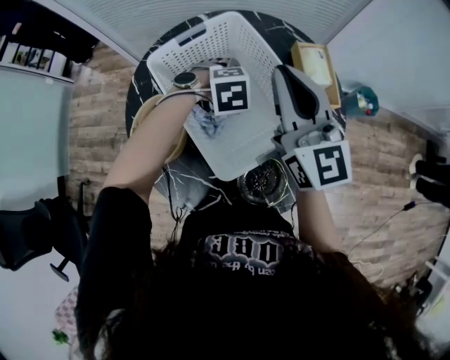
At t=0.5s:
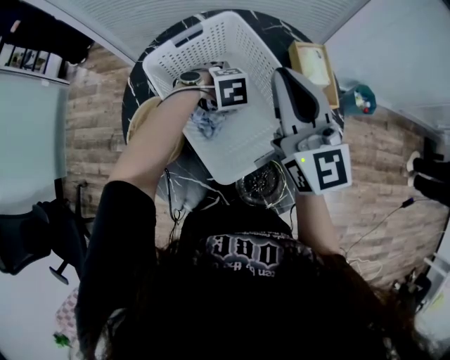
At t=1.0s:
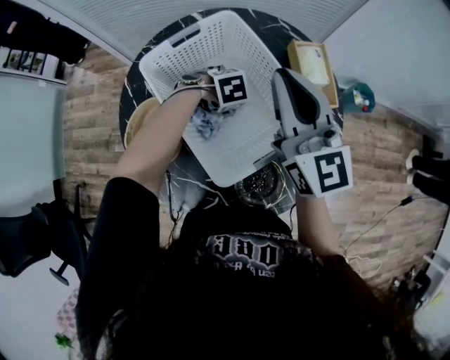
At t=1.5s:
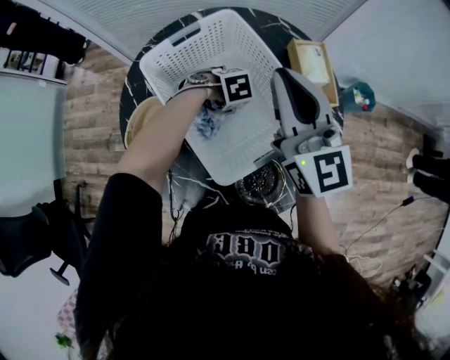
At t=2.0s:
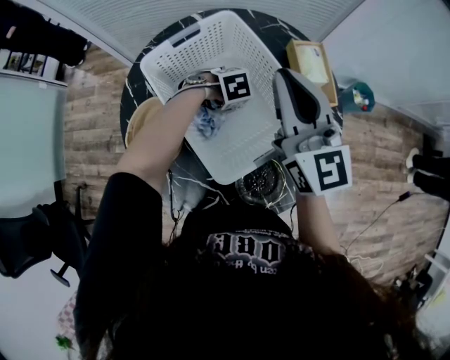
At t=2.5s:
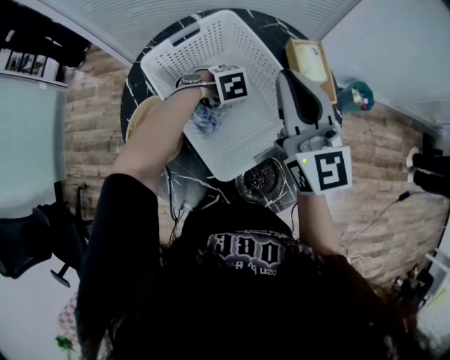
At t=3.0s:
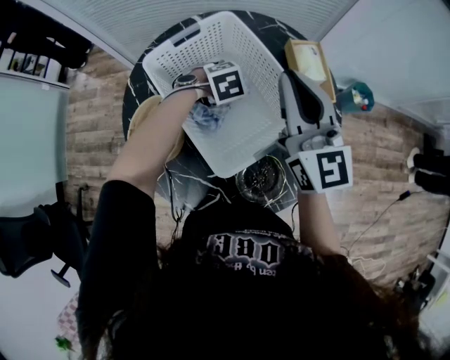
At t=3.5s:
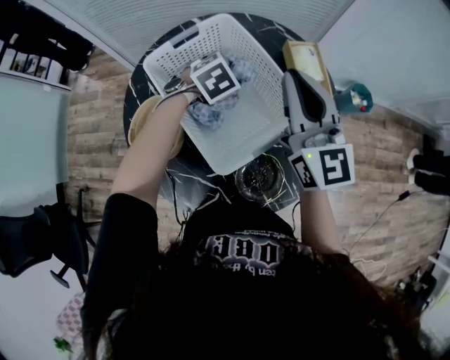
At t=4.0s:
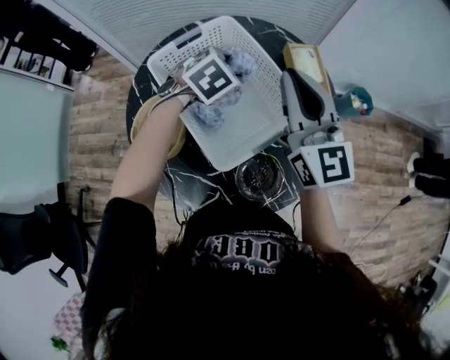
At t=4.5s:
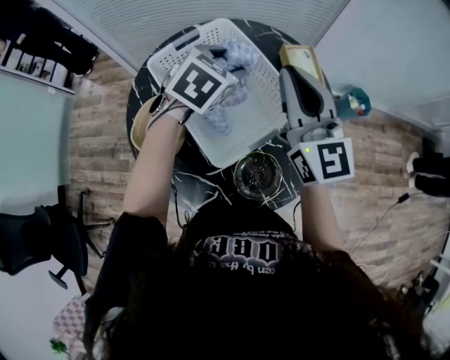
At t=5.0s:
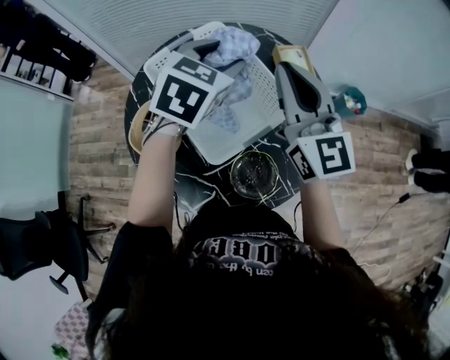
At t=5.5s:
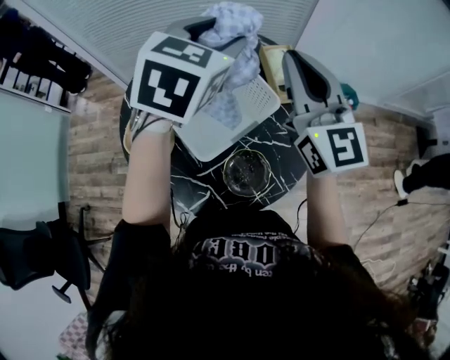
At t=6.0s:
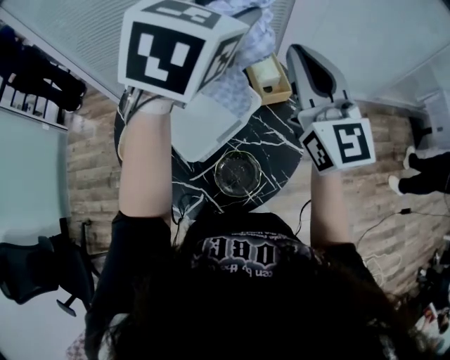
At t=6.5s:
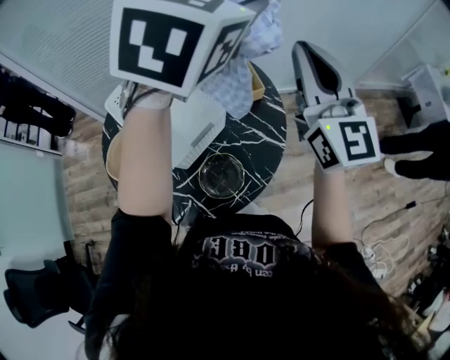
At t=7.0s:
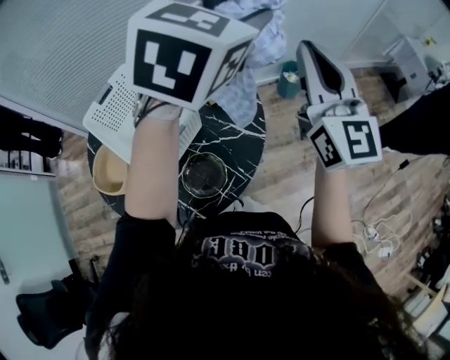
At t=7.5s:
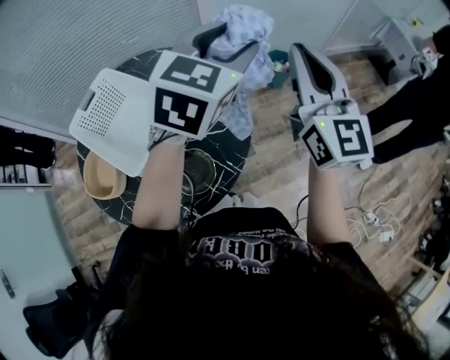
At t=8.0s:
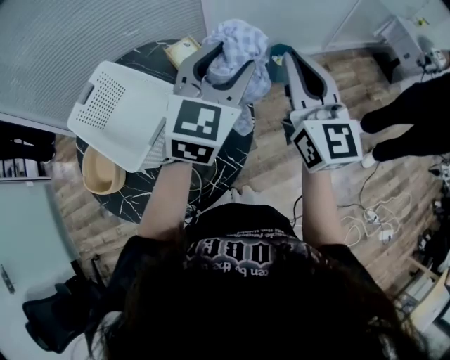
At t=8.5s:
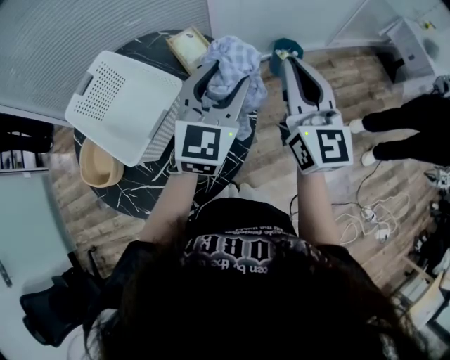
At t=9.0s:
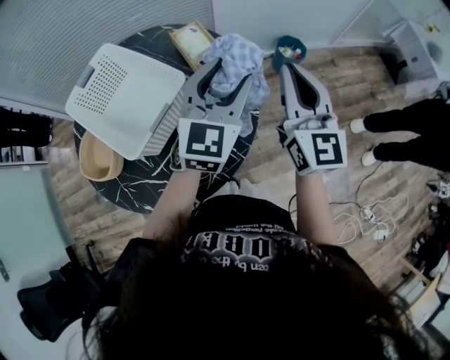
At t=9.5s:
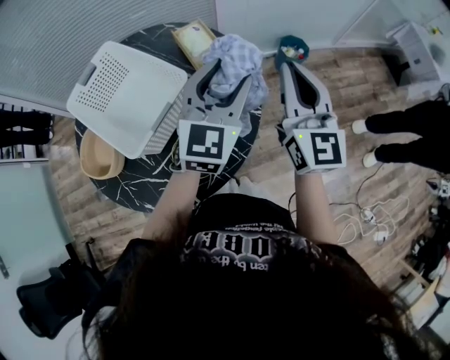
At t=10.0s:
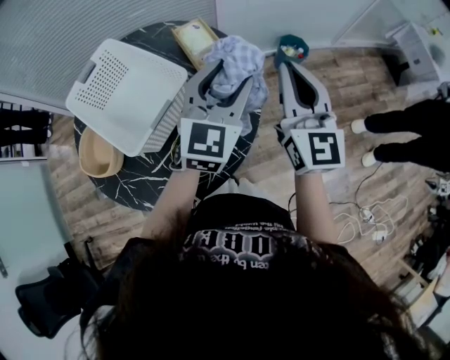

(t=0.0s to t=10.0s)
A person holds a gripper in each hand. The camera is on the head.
t=0.0s - t=2.0s: The left gripper is displaced downward by about 10 cm.
t=2.0s - t=4.0s: The left gripper travels upward by about 15 cm, and changes its angle by approximately 30 degrees.
t=4.0s - t=6.0s: The left gripper heads upward, covering about 30 cm, and tips its fingers upward by about 40 degrees, while the right gripper is displaced upward and to the right by approximately 15 cm.
t=6.0s - t=8.0s: The right gripper goes approximately 20 cm to the right, and rotates approximately 20 degrees, while the left gripper moves to the right and downward, roughly 25 cm.
t=8.0s - t=10.0s: Both grippers move downward, about 5 cm.

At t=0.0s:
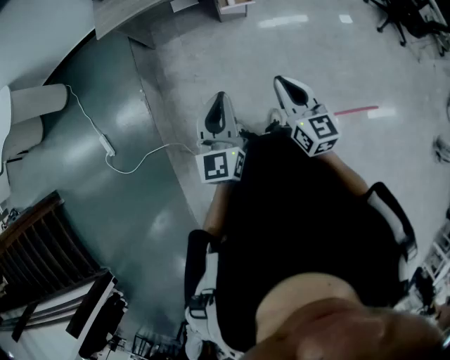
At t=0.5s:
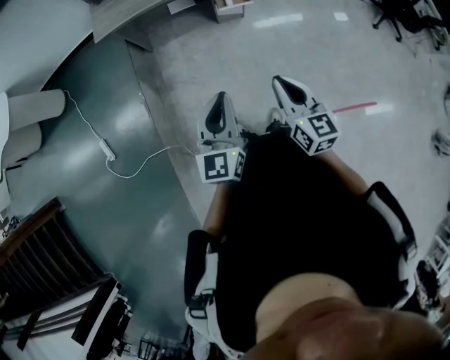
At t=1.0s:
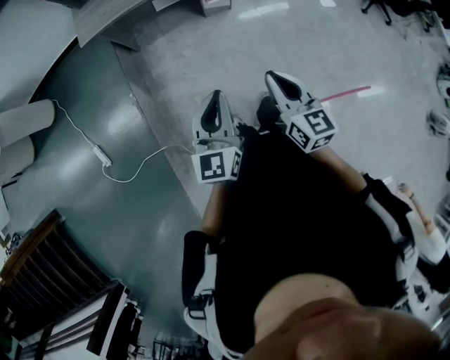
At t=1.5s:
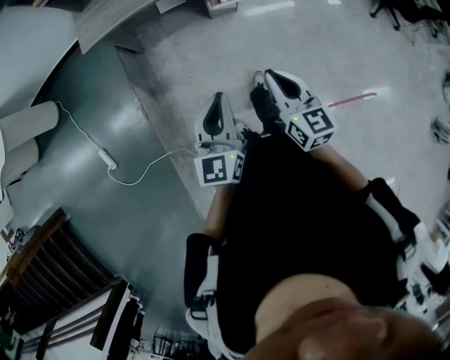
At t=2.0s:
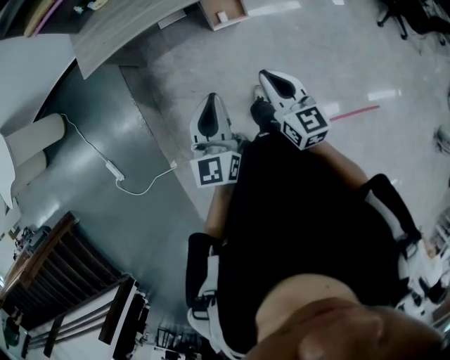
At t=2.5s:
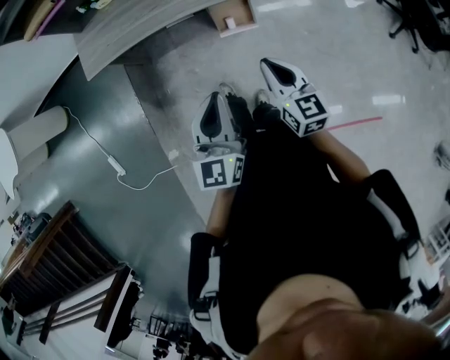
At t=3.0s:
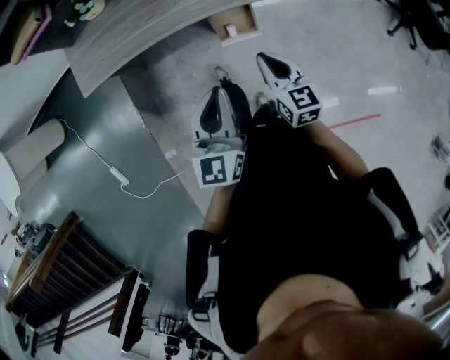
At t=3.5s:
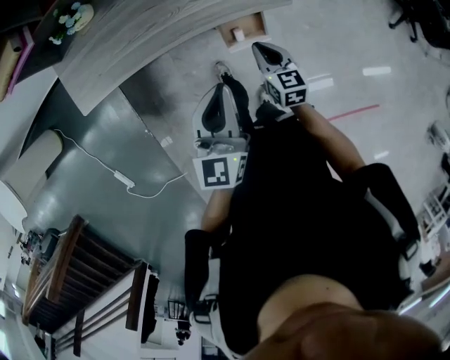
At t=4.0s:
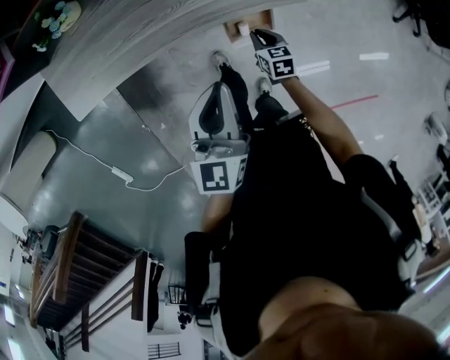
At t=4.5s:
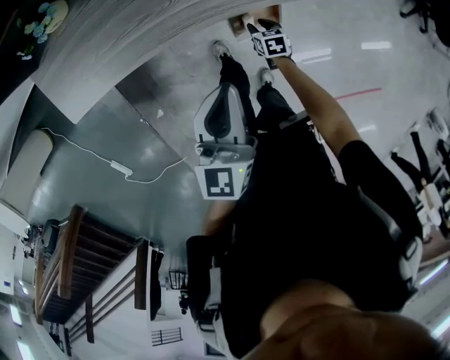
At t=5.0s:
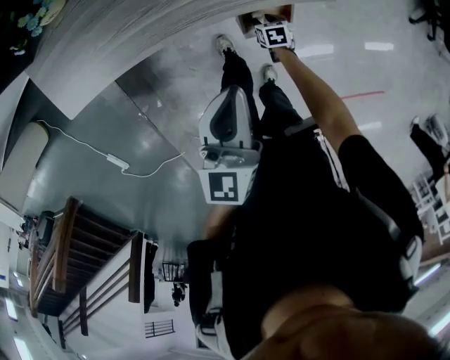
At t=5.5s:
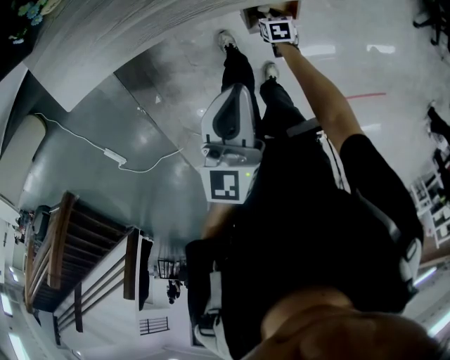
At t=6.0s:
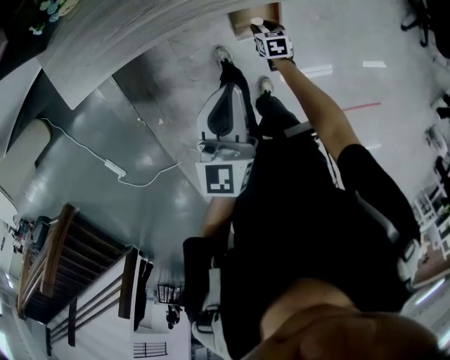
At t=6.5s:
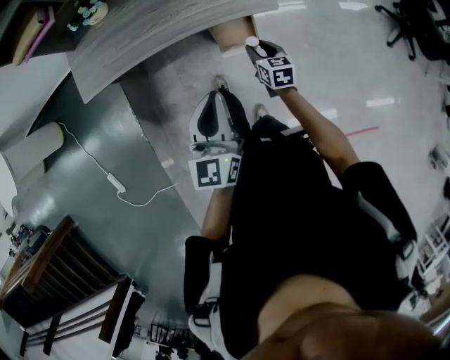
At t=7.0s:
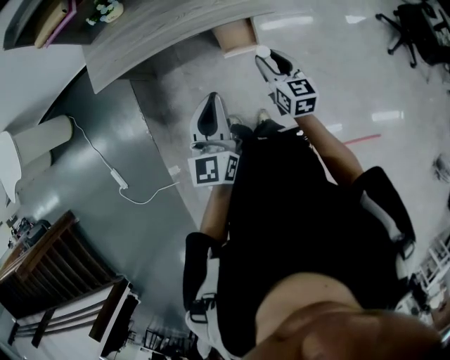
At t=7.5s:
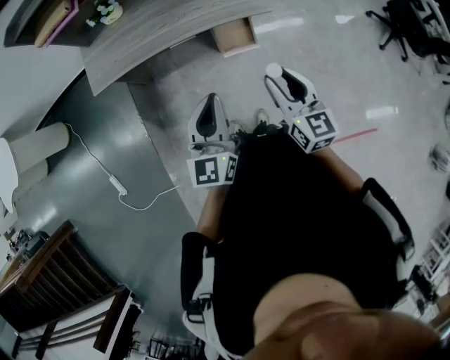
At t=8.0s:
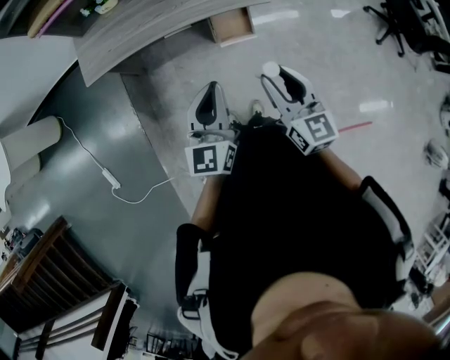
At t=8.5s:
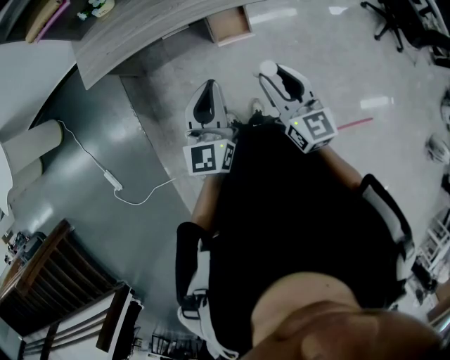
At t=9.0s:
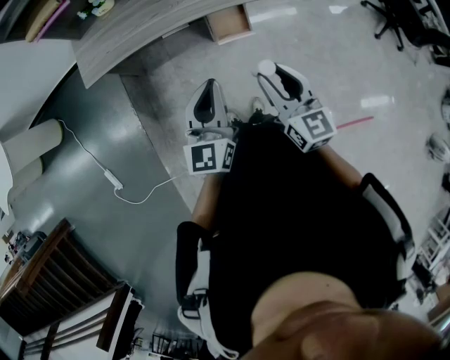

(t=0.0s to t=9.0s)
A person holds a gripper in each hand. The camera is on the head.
t=0.0s - t=2.0s: Both grippers travel together forward, about 25 cm.
t=2.0s - t=4.5s: The left gripper travels forward by about 40 cm, while the right gripper travels downward and forward by roughly 60 cm, tips its fingers downward by about 50 degrees, and opens.
t=4.5s - t=7.0s: The left gripper travels backward and upward by roughly 25 cm; the right gripper shifts roughly 40 cm upward and backward, and angles its fingers upward, by about 40 degrees.
t=7.0s - t=9.0s: The right gripper shifts roughly 20 cm backward, upward and to the left.

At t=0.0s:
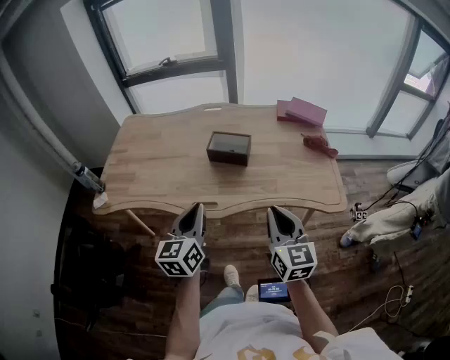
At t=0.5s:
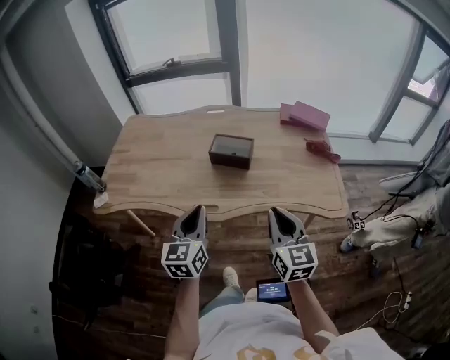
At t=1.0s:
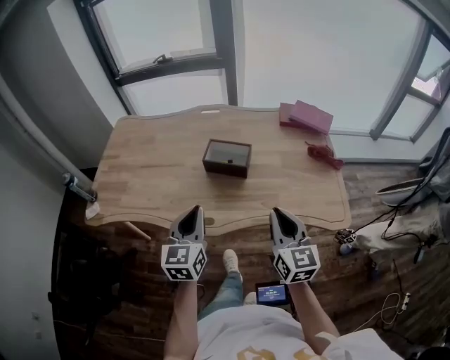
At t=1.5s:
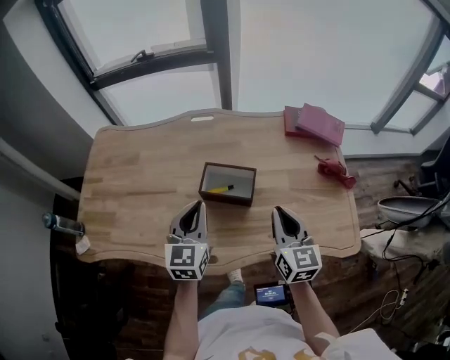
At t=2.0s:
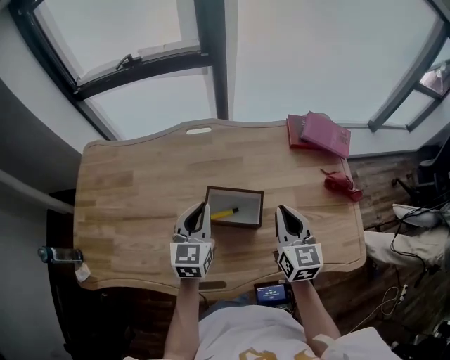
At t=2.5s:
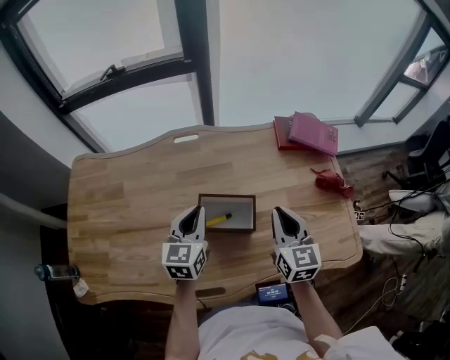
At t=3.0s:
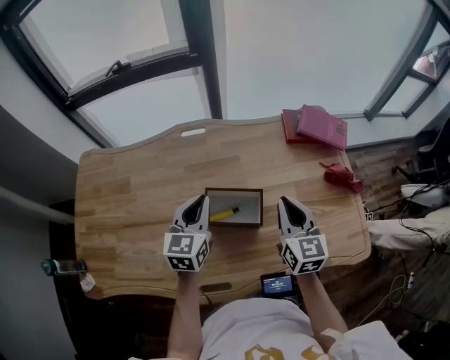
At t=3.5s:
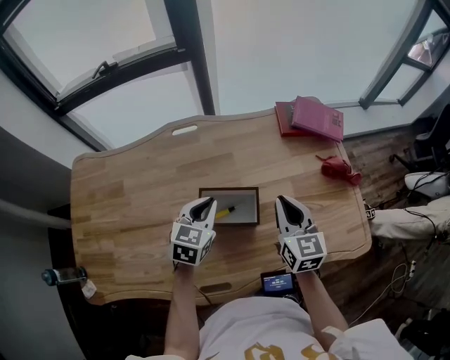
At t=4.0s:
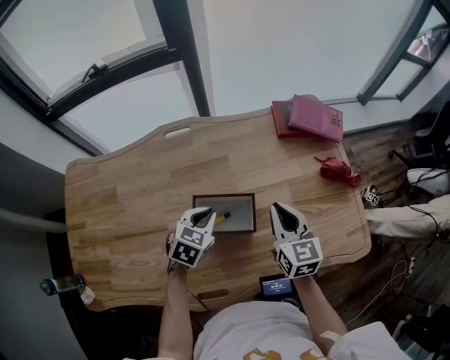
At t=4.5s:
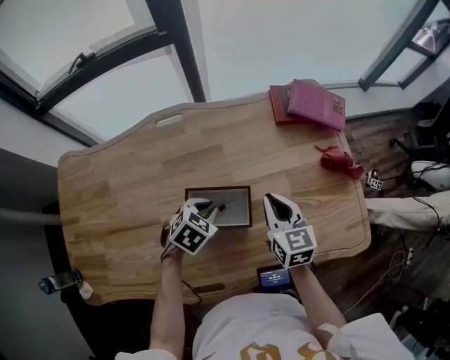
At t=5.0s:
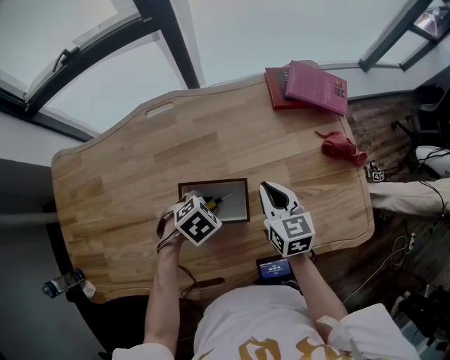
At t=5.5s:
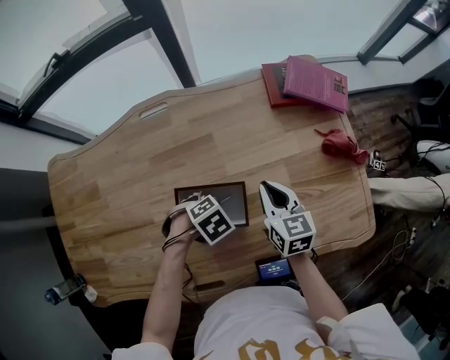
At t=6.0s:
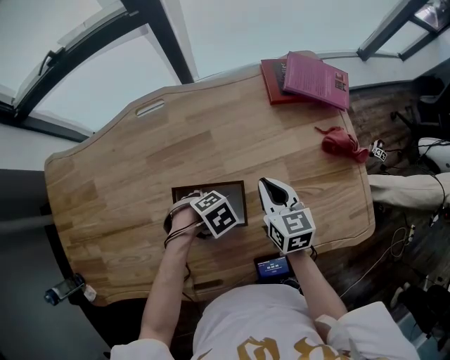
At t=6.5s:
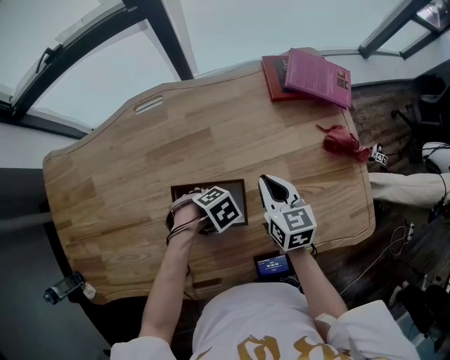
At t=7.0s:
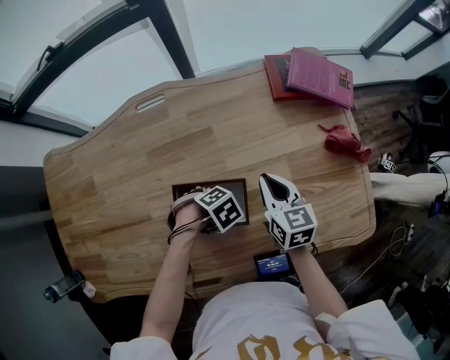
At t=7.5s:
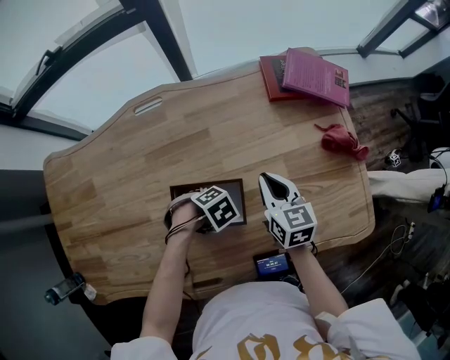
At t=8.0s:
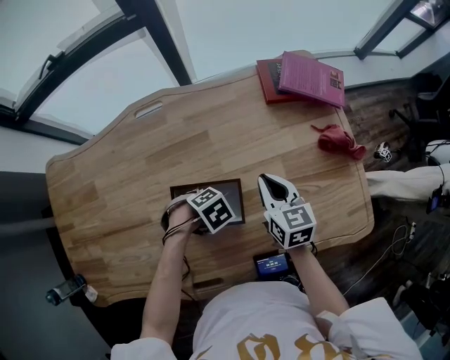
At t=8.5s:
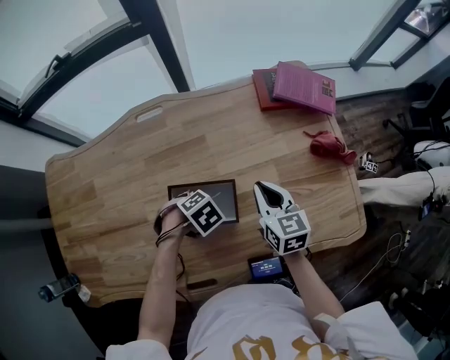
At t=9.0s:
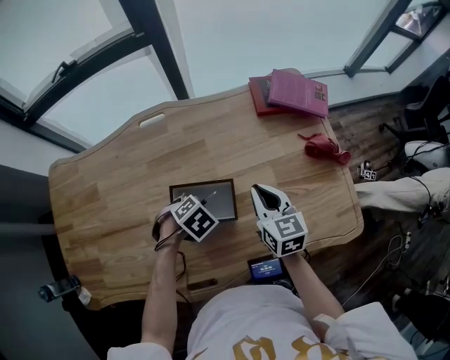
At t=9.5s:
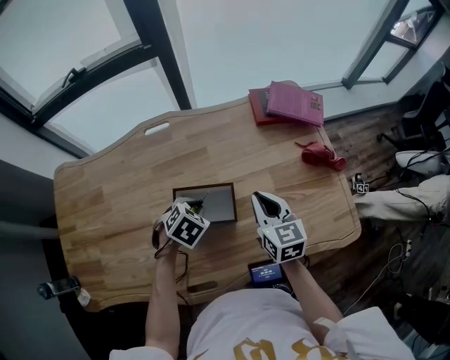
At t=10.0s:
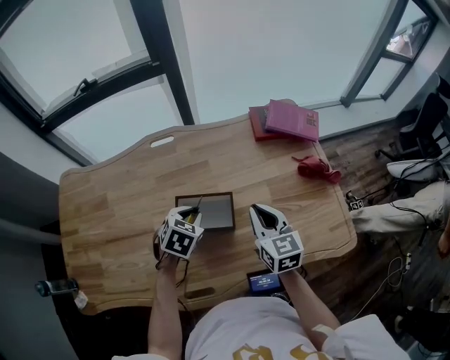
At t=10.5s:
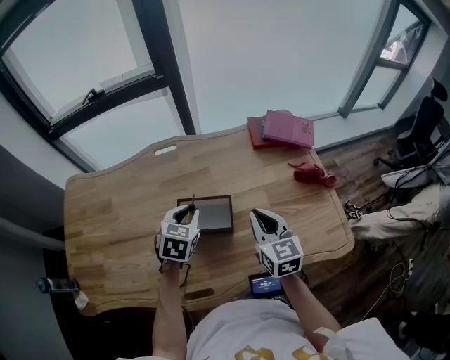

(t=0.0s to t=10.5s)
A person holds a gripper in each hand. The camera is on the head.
t=0.0s - t=2.0s: The two grippers go approximately 40 cm forward.
t=2.0s - t=4.0s: The left gripper goes about 10 cm downward, and changes its angle by some 40 degrees; the right gripper changes place by roughly 5 cm.
t=4.0s - t=6.5s: The two grippers go about 10 cm downward. The left gripper angles its fingers downward, by approximately 30 degrees, and opens up.
t=6.5s - t=8.5s: The grippers move only a little.
t=8.5s - t=10.5s: The left gripper moves upward, approximately 15 cm, and points its fingers about 40 degrees further upward; the right gripper heads upward, covering approximately 10 cm.
